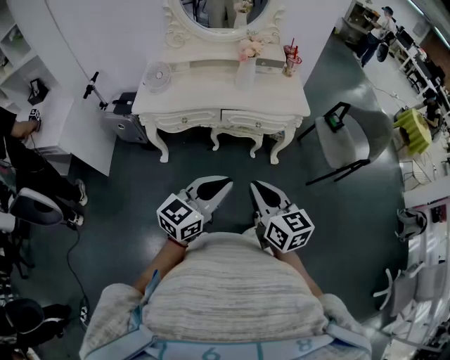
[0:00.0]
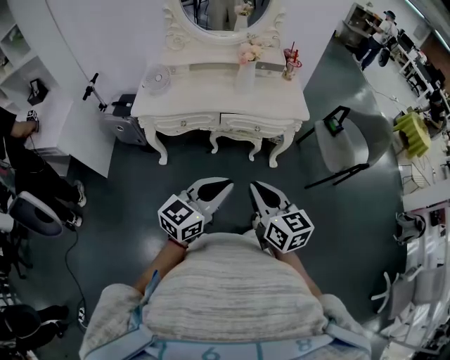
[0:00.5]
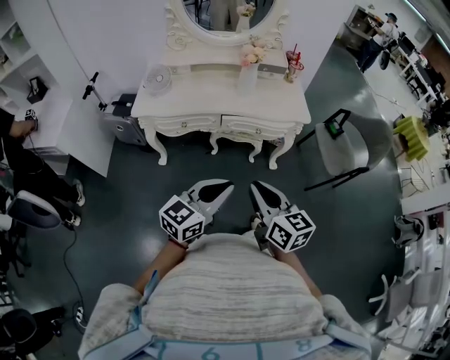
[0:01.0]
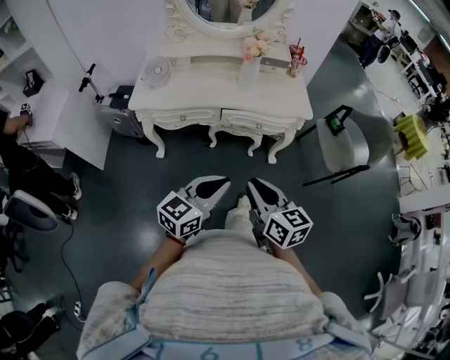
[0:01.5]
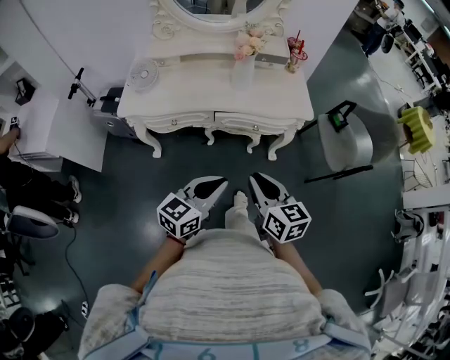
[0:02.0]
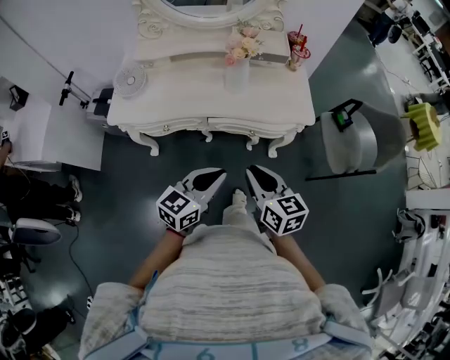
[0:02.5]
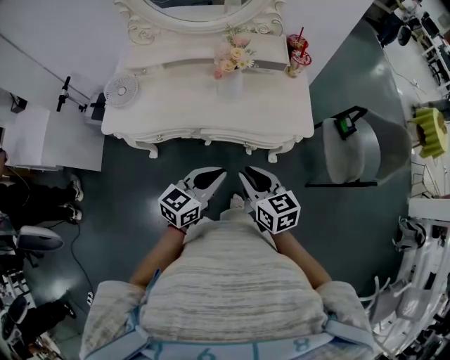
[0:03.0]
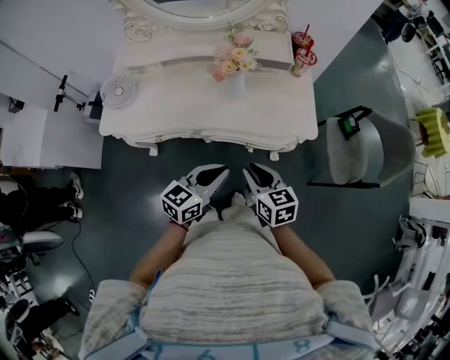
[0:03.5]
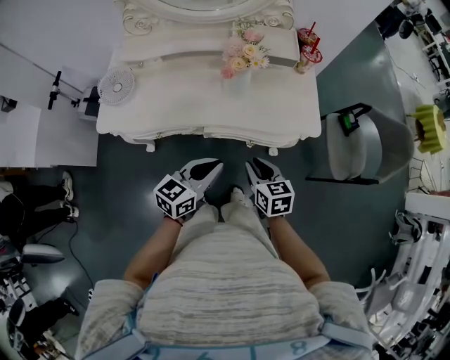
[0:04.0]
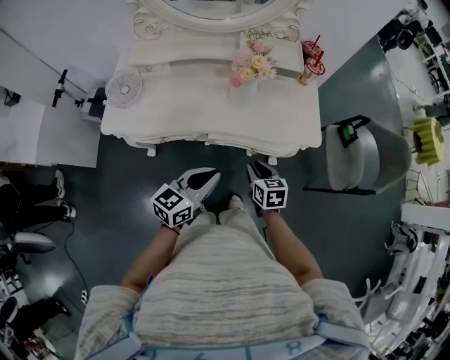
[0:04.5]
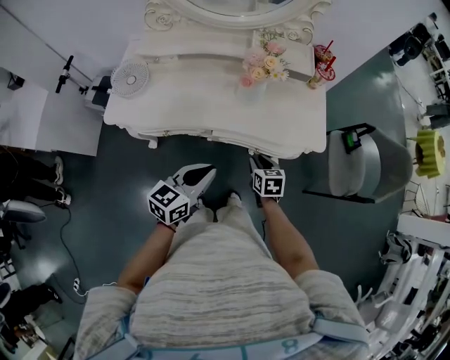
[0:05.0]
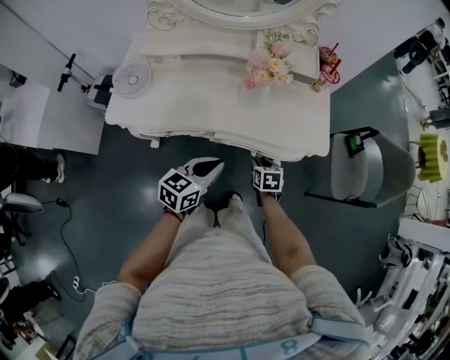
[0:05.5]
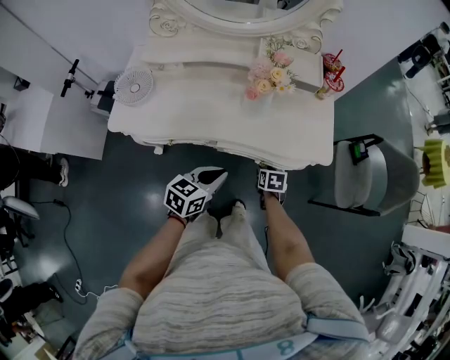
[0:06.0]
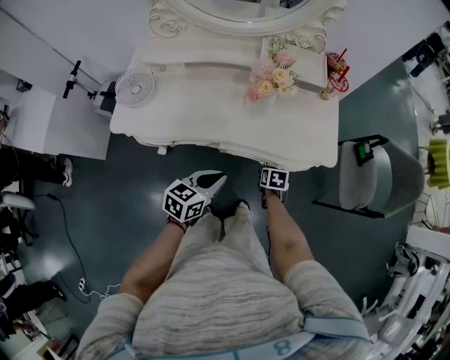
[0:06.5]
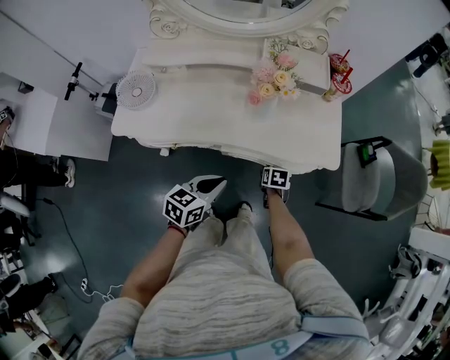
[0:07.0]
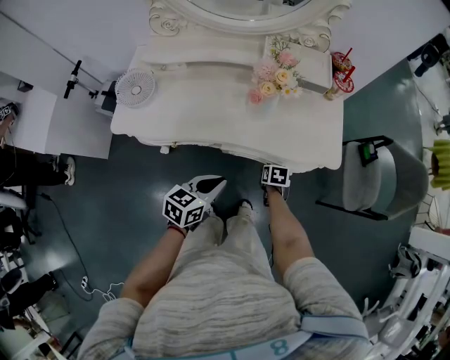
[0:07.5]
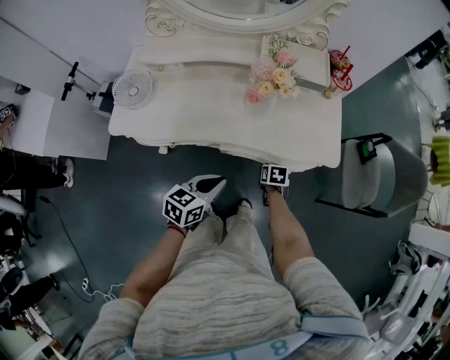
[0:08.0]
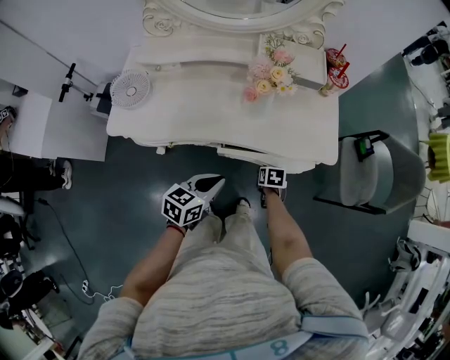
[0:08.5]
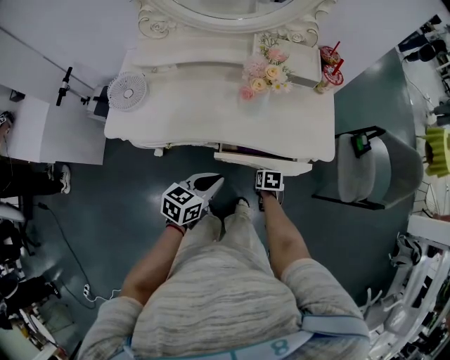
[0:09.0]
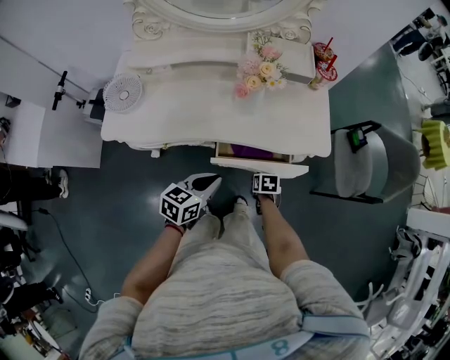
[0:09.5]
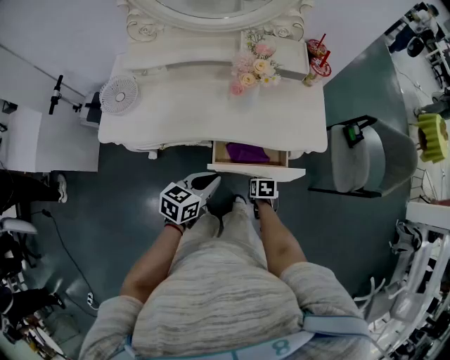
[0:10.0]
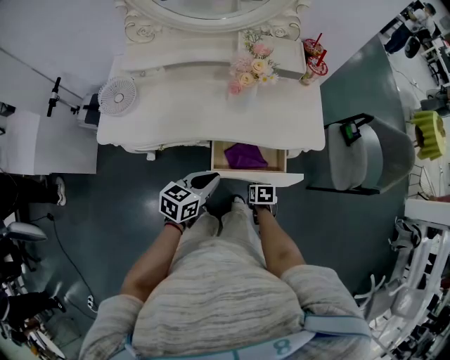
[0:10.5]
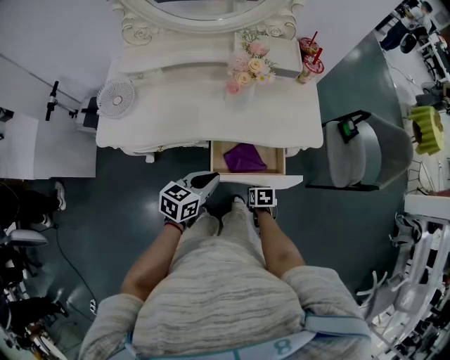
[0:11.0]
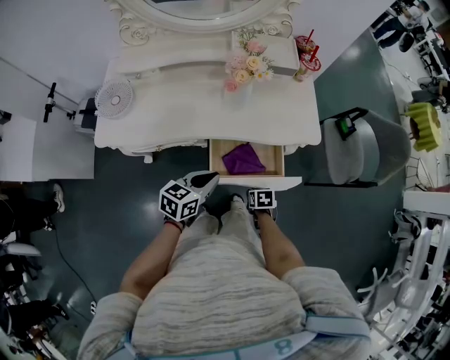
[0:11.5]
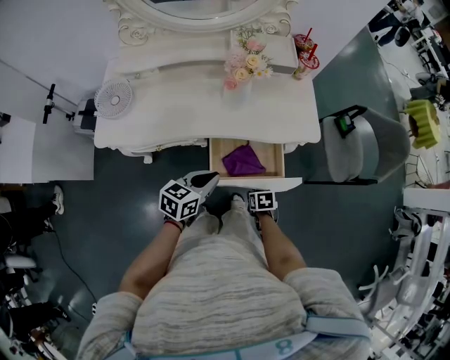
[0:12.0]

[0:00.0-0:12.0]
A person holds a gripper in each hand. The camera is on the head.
0:00.0 to 0:02.0: The right gripper heads forward, covering roughly 15 cm. Meanwhile the left gripper travels forward and downward by approximately 15 cm.
0:02.0 to 0:04.0: The left gripper moves forward, about 20 cm. Meanwhile the right gripper travels forward and downward by roughly 25 cm.
0:04.0 to 0:06.0: The left gripper goes approximately 5 cm downward, while the right gripper shifts about 20 cm downward and forward, and turns by approximately 30 degrees.
0:06.0 to 0:08.0: The grippers stay close to where they were, moving slightly.
0:08.0 to 0:10.0: The right gripper goes approximately 10 cm backward.
0:10.0 to 0:12.0: The right gripper moves backward, some 5 cm.

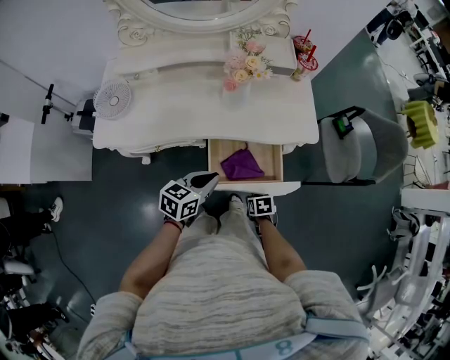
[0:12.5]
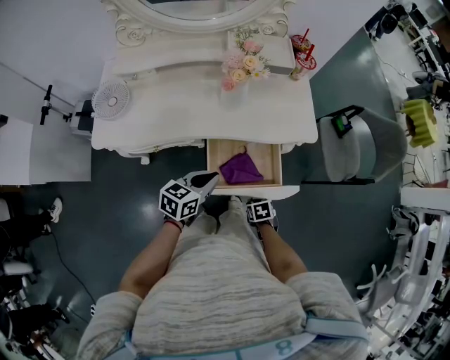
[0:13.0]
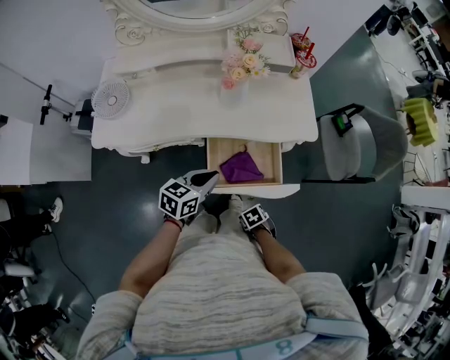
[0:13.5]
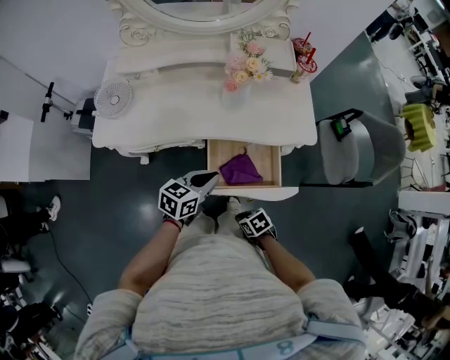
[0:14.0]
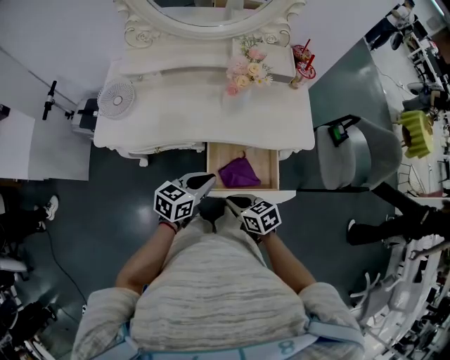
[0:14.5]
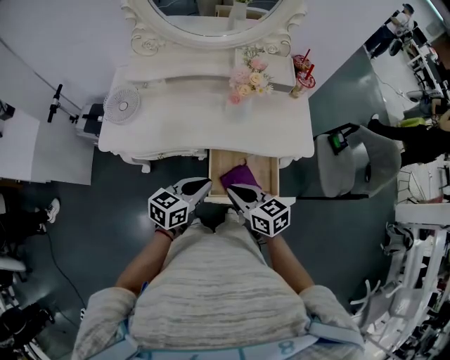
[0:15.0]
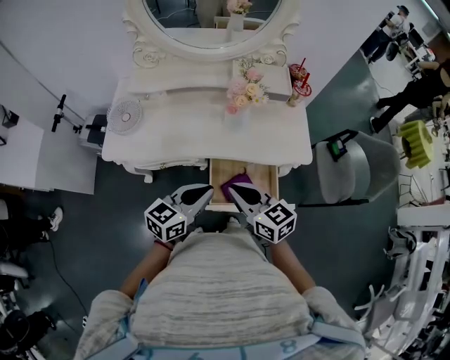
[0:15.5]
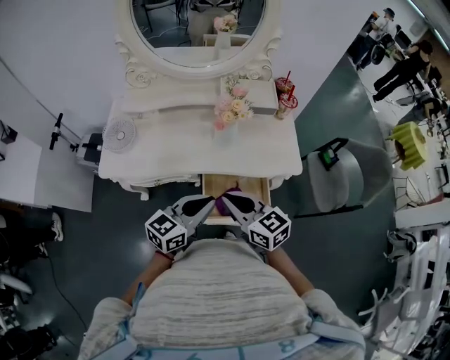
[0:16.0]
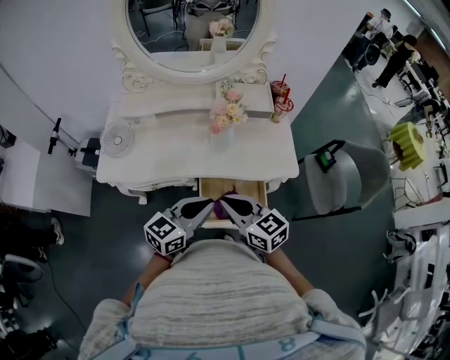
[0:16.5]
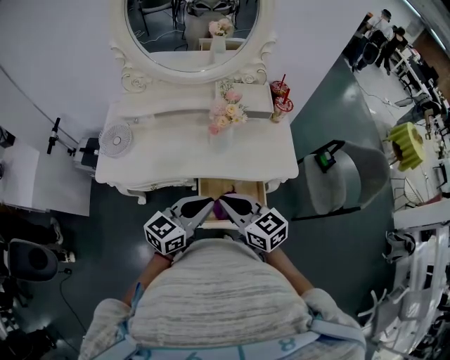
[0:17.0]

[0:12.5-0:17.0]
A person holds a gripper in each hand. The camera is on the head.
0:12.5 to 0:14.5: The right gripper shifts roughly 20 cm upward, tips its fingers upward by approximately 30 degrees, and closes up.
0:14.5 to 0:17.0: Both grippers travel together upward, about 15 cm. The right gripper changes its angle by approximately 30 degrees. Meanwhile the left gripper swivels approximately 20 degrees.

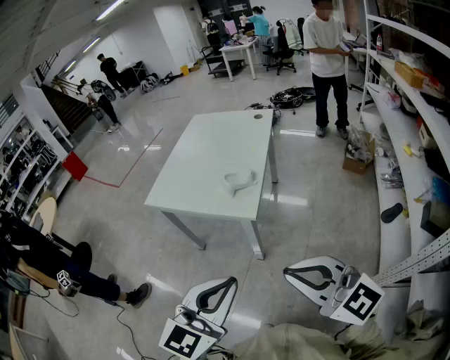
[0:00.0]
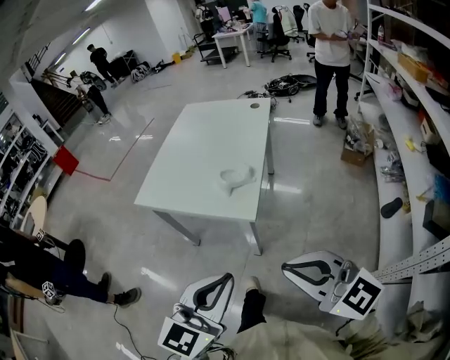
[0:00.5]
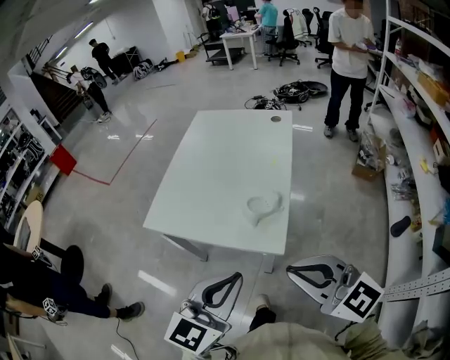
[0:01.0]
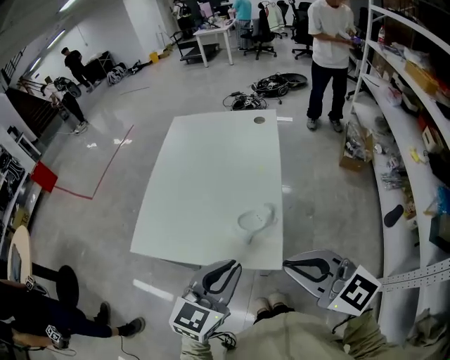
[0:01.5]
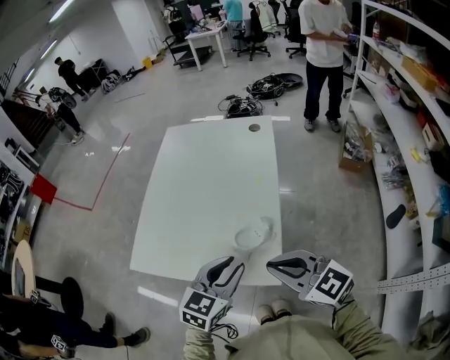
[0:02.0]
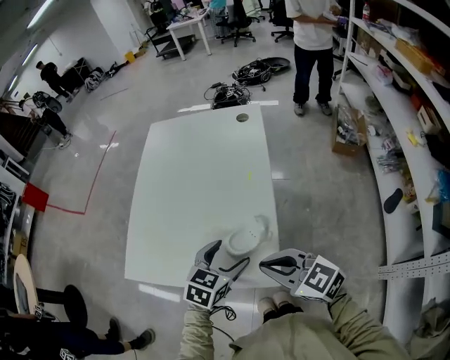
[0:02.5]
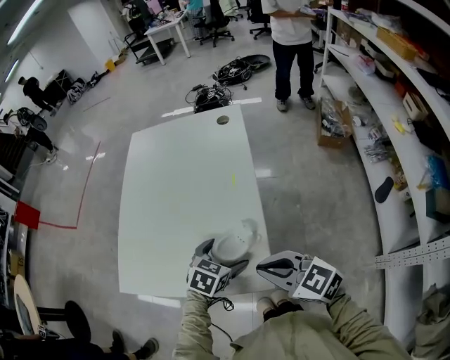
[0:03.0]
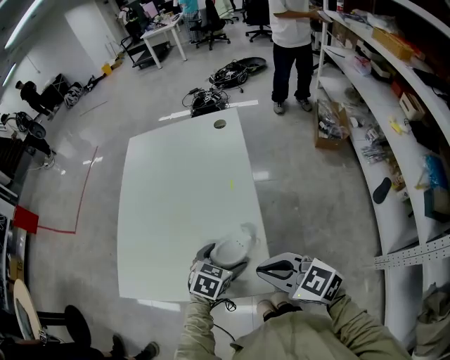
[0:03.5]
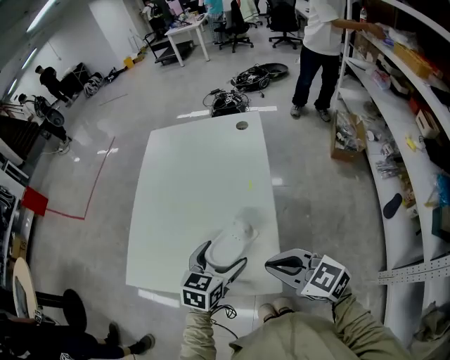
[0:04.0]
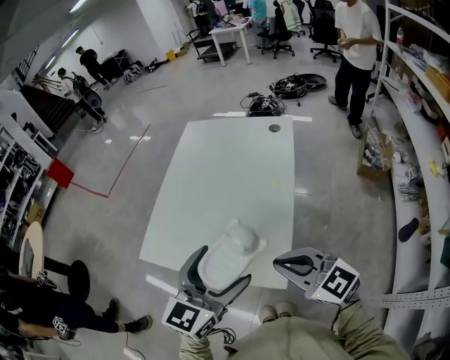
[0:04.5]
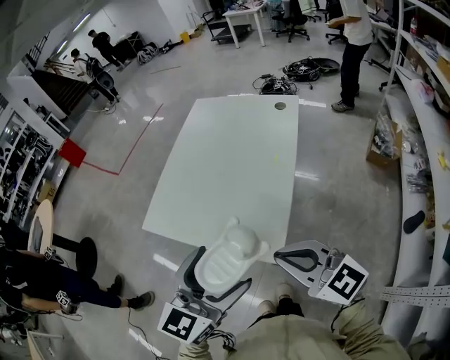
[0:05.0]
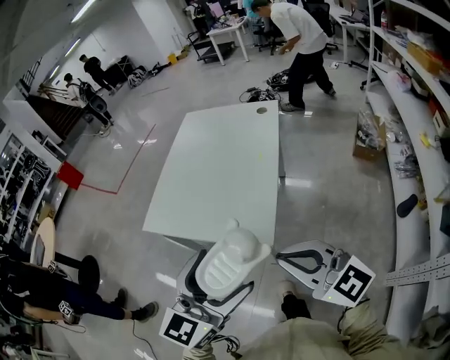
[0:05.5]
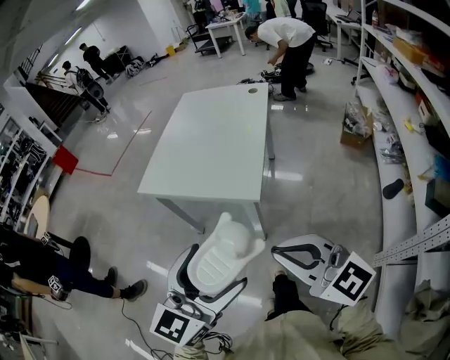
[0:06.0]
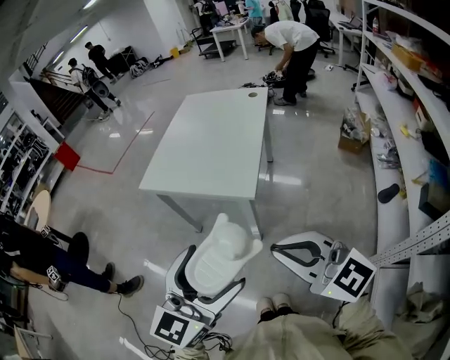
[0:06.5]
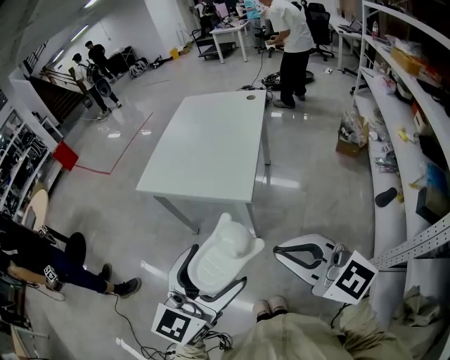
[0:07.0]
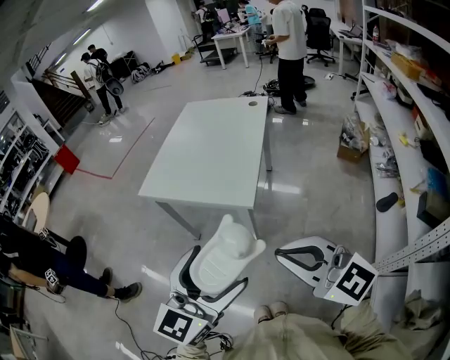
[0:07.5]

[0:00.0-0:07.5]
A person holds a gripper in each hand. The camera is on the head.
0:00.0 to 0:02.0: Both grippers move forward, roughly 35 cm.
0:02.0 to 0:04.0: The left gripper moves forward and downward, approximately 10 cm, and opens. The right gripper moves downward, approximately 5 cm.
0:04.0 to 0:05.5: The grippers both shift backward and upward by roughly 25 cm. The left gripper turns by about 30 degrees. Meanwhile the right gripper turns by some 20 degrees.
0:05.5 to 0:07.5: Both grippers travel together backward, roughly 20 cm.

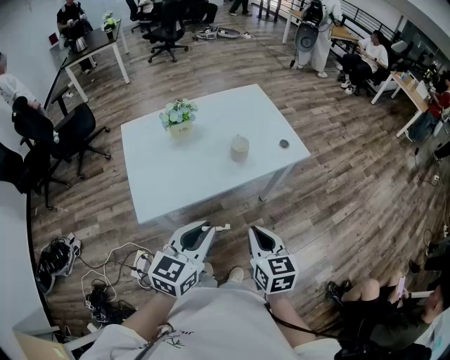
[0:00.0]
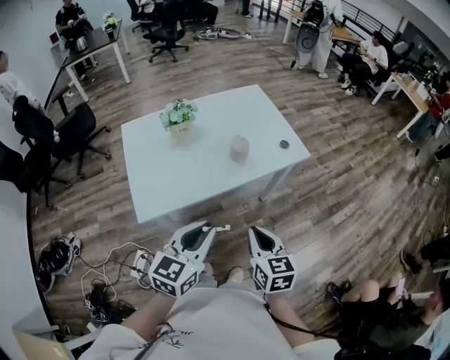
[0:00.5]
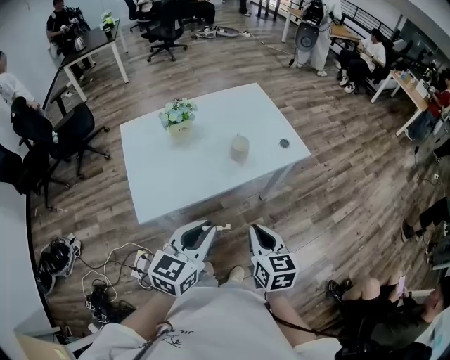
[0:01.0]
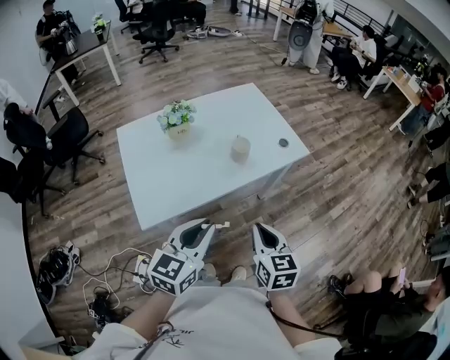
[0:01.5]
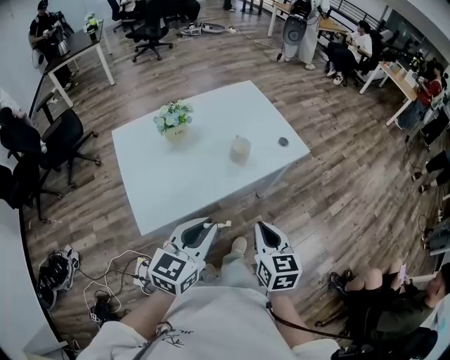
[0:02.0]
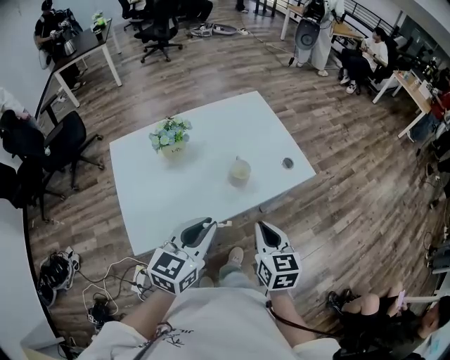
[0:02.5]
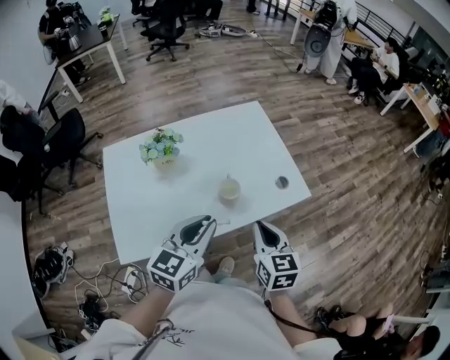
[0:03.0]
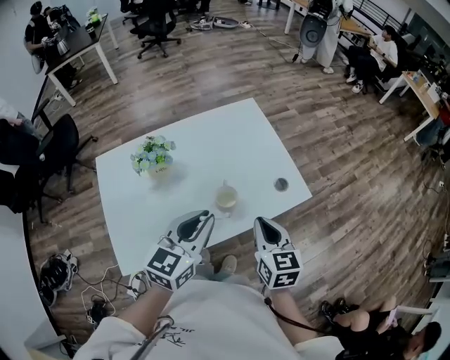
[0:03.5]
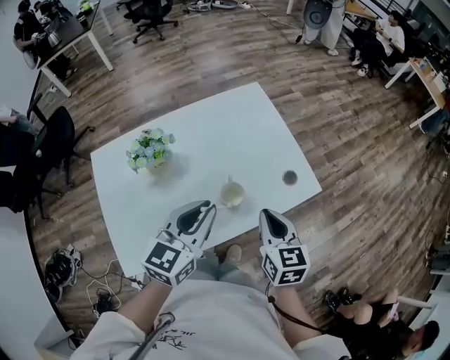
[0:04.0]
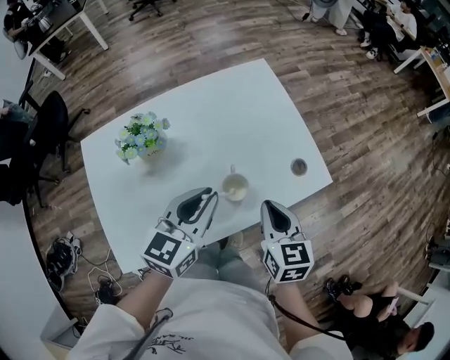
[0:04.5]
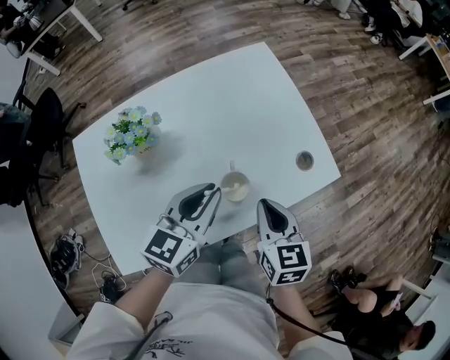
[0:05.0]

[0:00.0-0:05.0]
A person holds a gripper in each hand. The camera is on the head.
0:00.0 to 0:02.5: The two grippers go approximately 15 cm forward.
0:02.5 to 0:05.0: The two grippers go approximately 20 cm forward and downward.
